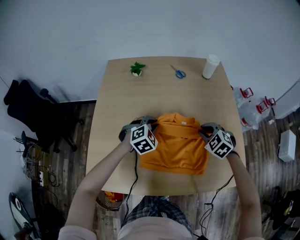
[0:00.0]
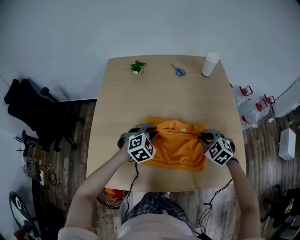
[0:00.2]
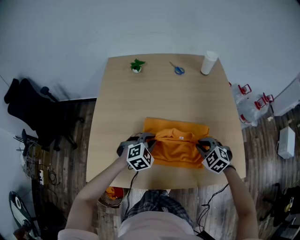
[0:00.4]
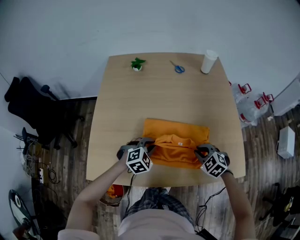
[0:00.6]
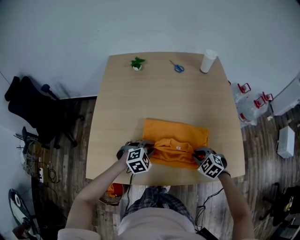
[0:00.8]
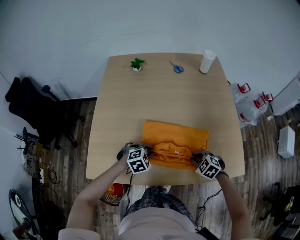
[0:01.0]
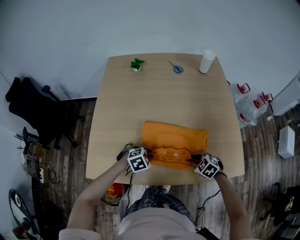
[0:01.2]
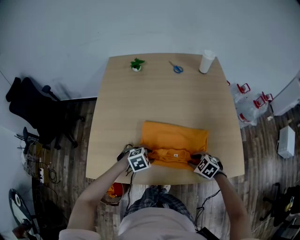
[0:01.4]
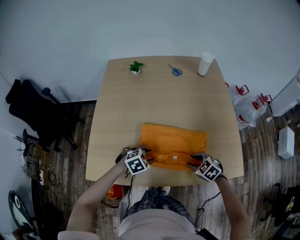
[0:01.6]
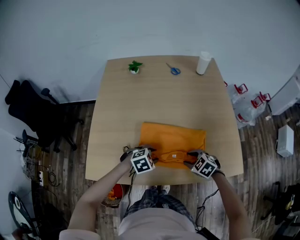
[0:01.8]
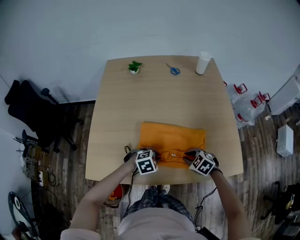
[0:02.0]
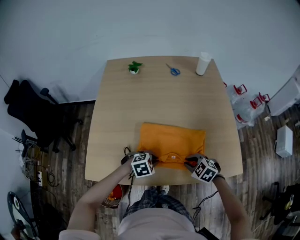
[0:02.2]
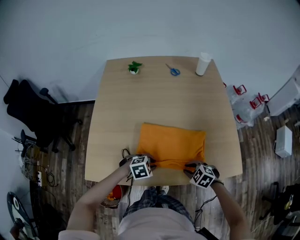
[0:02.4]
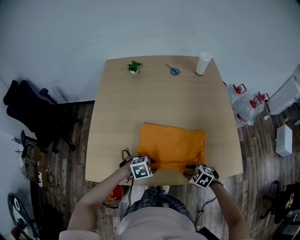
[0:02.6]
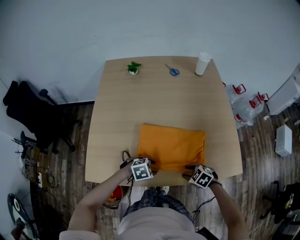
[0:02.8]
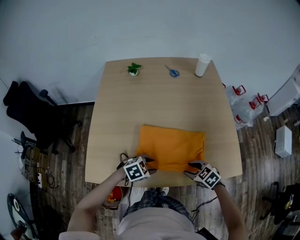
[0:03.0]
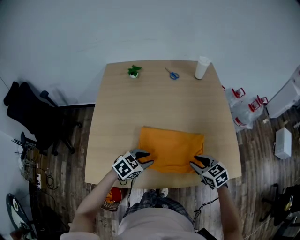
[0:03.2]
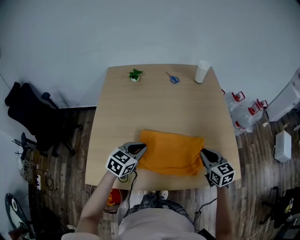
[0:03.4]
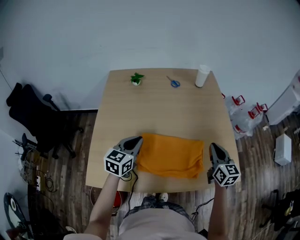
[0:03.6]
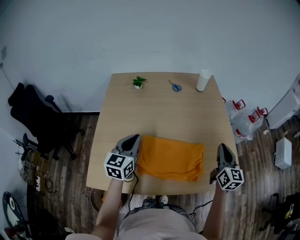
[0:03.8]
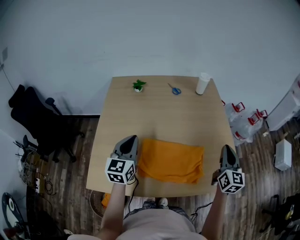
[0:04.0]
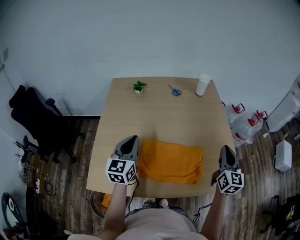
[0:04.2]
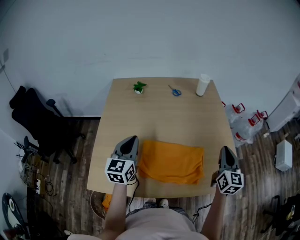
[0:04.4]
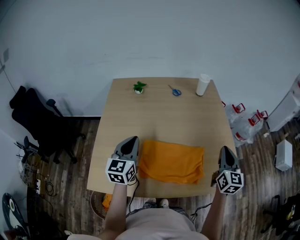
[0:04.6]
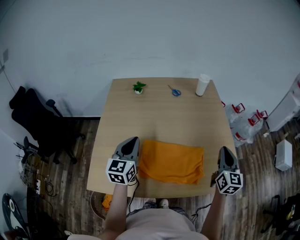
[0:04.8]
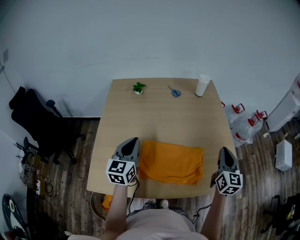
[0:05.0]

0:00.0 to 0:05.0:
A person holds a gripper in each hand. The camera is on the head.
0:00.0 to 0:01.6: The right gripper ends up some 20 cm from where it was, and turns by about 20 degrees, while the left gripper ends up roughly 20 cm from where it was, and swivels about 30 degrees.
0:01.6 to 0:03.4: The two grippers go some 15 cm upward. The right gripper points its fingers some 30 degrees further upward. The left gripper turns by about 40 degrees.
0:03.4 to 0:05.0: The right gripper heads upward and to the right, covering about 15 cm, and changes its angle by about 30 degrees, while the left gripper goes approximately 10 cm upward and to the left, and changes its angle by roughly 40 degrees.

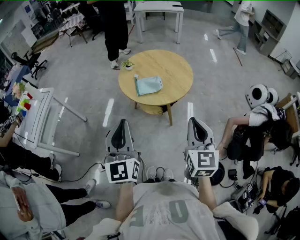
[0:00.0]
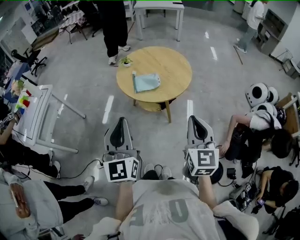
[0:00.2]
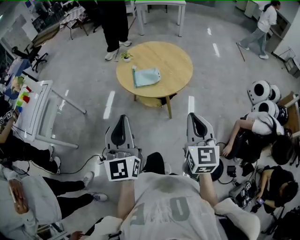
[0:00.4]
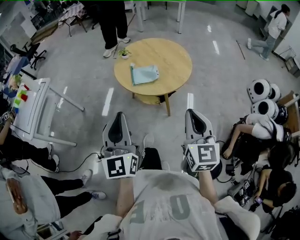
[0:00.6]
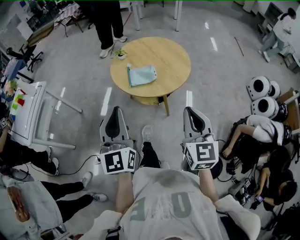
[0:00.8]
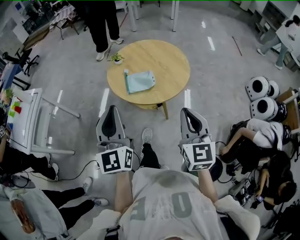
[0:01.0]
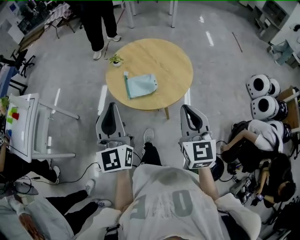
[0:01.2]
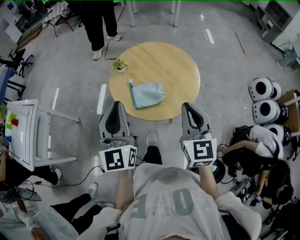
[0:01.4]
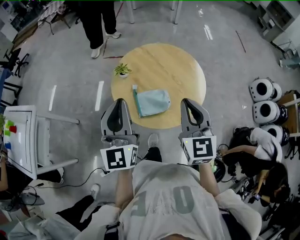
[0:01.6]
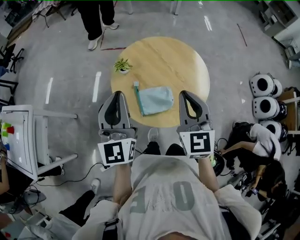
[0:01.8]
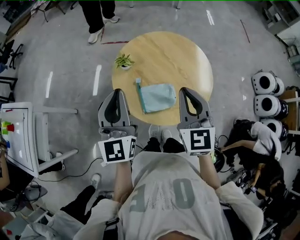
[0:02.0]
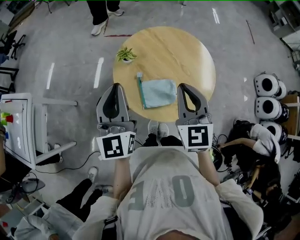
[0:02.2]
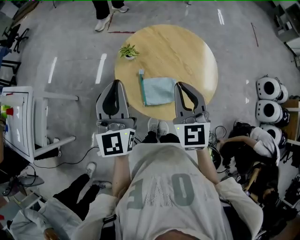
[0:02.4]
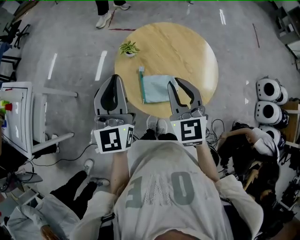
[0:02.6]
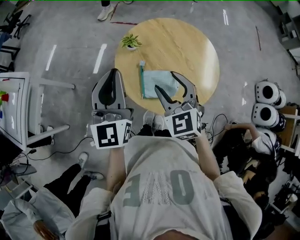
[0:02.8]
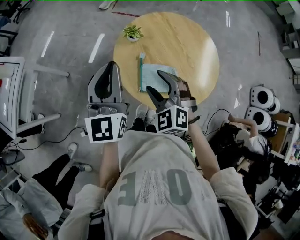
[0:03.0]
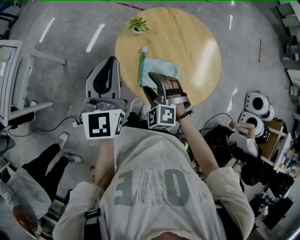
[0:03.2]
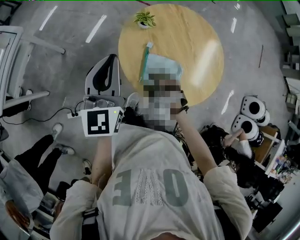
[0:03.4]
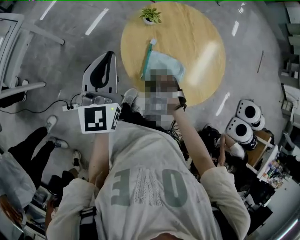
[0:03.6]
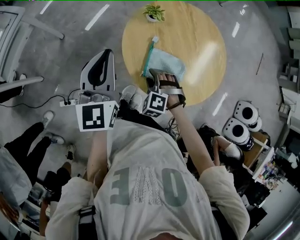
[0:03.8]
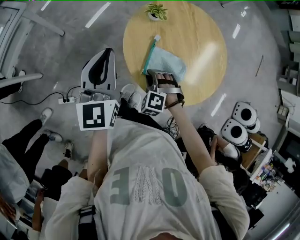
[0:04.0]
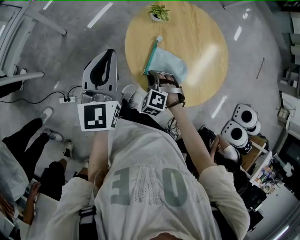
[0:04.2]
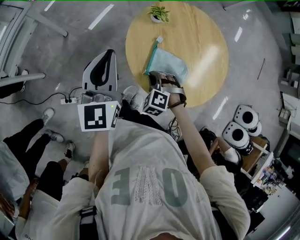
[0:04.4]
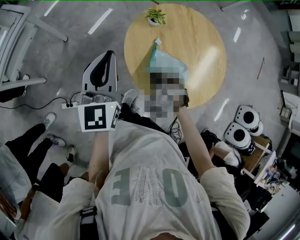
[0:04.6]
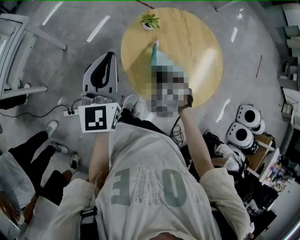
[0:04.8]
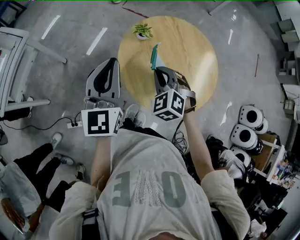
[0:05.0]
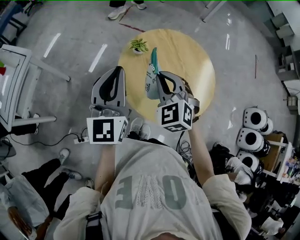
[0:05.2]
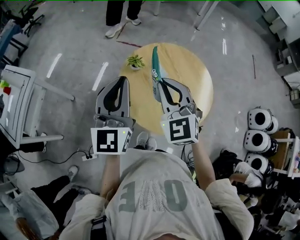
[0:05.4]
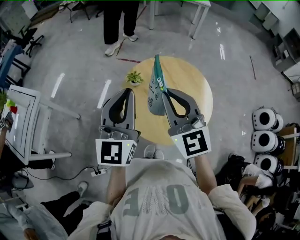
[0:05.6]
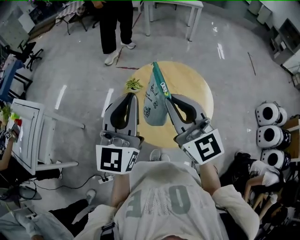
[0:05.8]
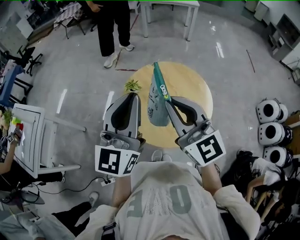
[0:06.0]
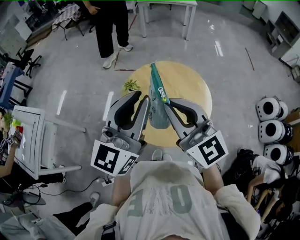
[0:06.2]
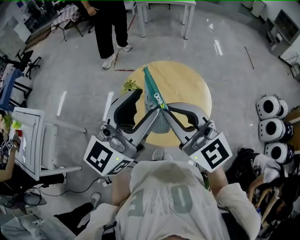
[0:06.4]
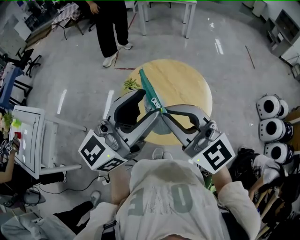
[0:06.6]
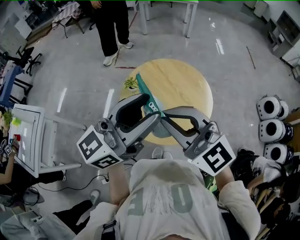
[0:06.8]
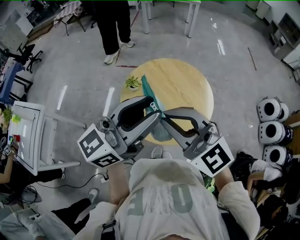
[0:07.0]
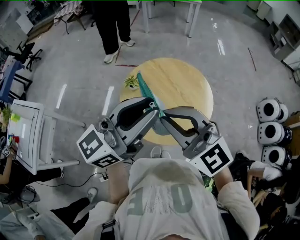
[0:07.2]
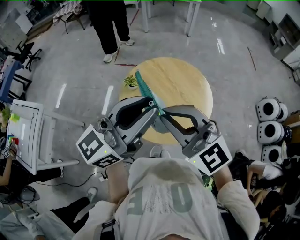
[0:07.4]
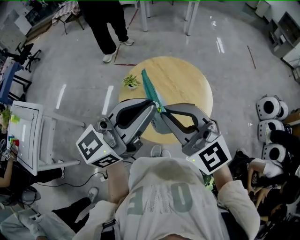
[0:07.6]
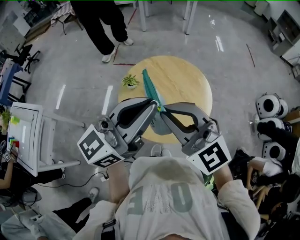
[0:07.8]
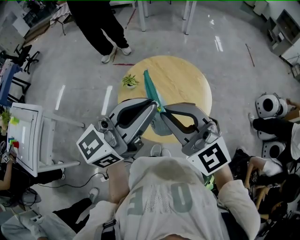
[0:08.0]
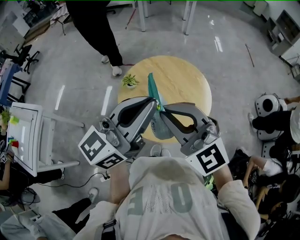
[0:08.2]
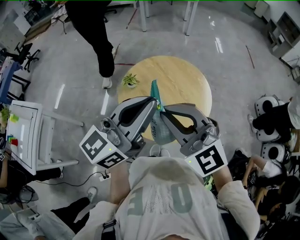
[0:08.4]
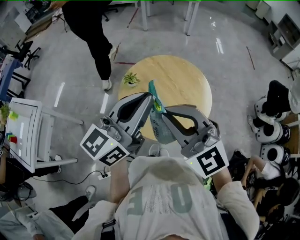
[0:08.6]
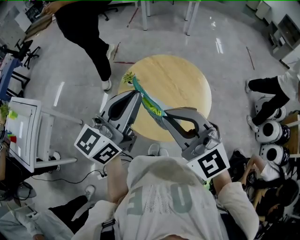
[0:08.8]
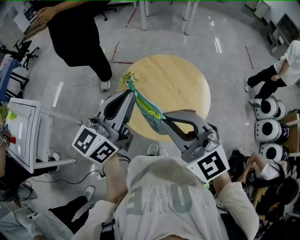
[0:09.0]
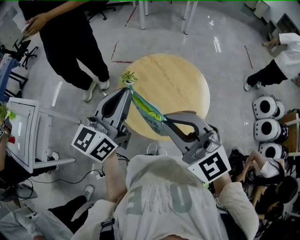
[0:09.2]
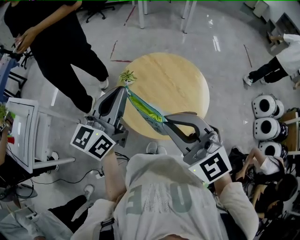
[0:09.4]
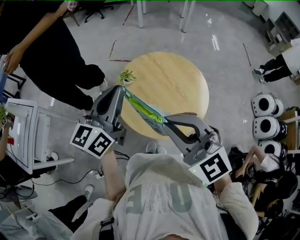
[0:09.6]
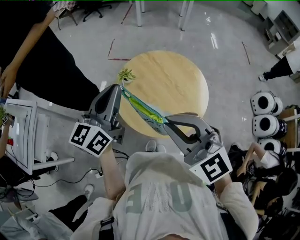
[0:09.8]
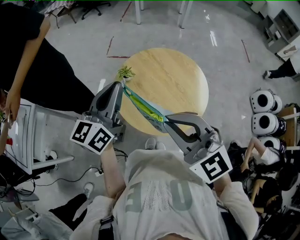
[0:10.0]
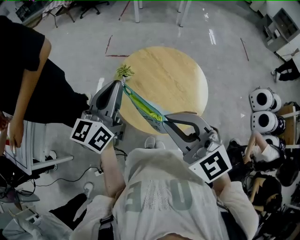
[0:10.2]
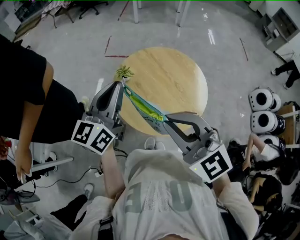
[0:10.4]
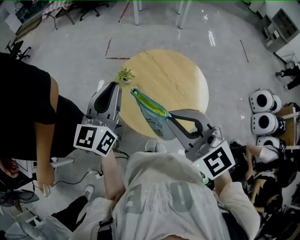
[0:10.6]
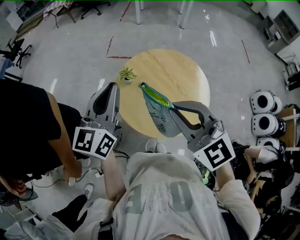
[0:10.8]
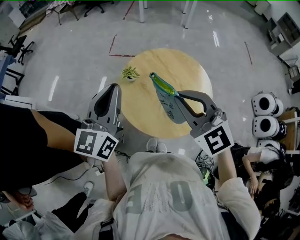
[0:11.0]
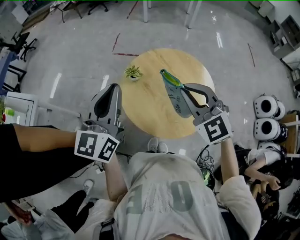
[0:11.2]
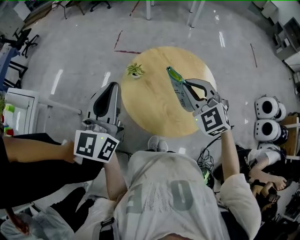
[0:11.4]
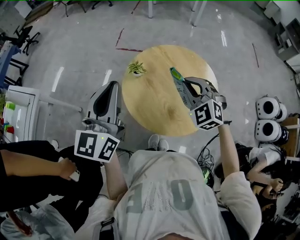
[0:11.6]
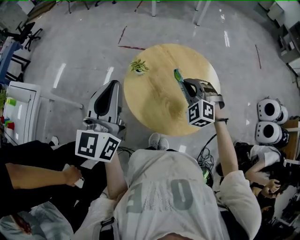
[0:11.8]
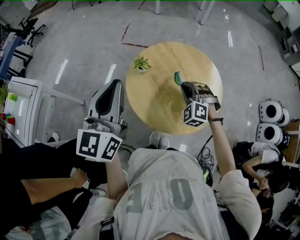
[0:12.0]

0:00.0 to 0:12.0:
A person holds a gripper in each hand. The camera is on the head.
0:00.0 to 0:01.6: The grippers both shift forward by some 30 cm.
0:01.6 to 0:03.0: The left gripper is displaced forward and to the left by some 10 cm, while the right gripper is displaced to the left, downward and forward by about 20 cm, rotates about 50 degrees, and opens up.
0:03.0 to 0:04.4: The right gripper shifts roughly 20 cm downward, swivels about 30 degrees, and closes its fingers. The left gripper is displaced to the left and downward by approximately 10 cm.
0:04.4 to 0:06.0: The right gripper shifts approximately 40 cm upward, and points its fingers some 70 degrees further upward. Meanwhile the left gripper travels upward and to the right by roughly 25 cm, and swivels roughly 40 degrees.
0:06.0 to 0:07.6: The left gripper shifts by some 5 cm, turns by roughly 40 degrees, and opens, then closes again.
0:07.6 to 0:09.0: The left gripper moves to the left, some 5 cm.
0:09.0 to 0:10.4: The left gripper ends up about 5 cm from where it was.
0:10.4 to 0:12.0: The right gripper heads downward and forward, covering approximately 30 cm, and angles its fingers downward, by approximately 30 degrees, while the left gripper goes some 5 cm to the left.

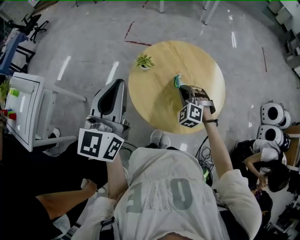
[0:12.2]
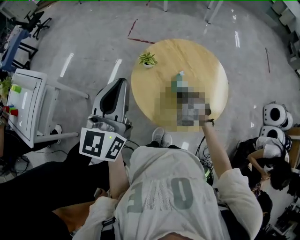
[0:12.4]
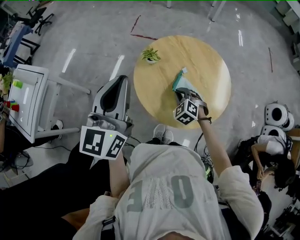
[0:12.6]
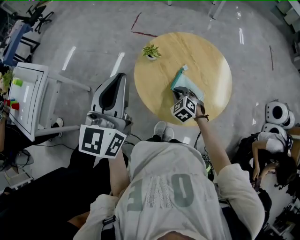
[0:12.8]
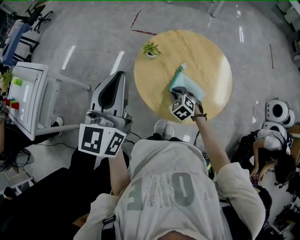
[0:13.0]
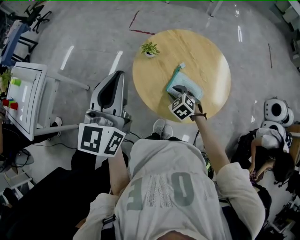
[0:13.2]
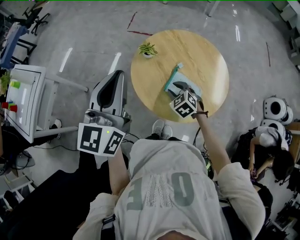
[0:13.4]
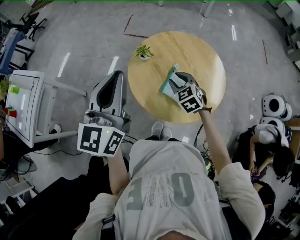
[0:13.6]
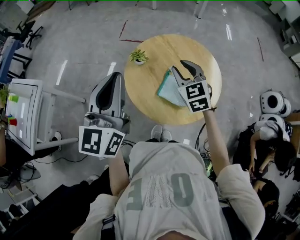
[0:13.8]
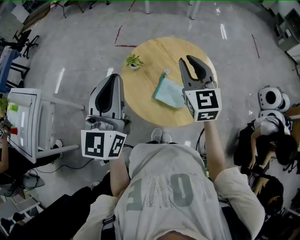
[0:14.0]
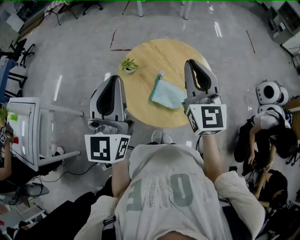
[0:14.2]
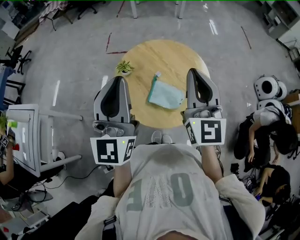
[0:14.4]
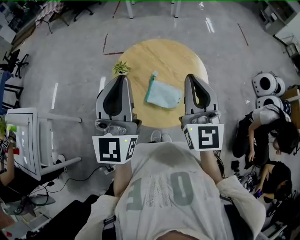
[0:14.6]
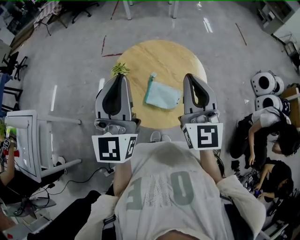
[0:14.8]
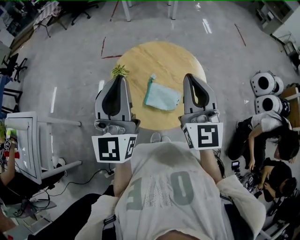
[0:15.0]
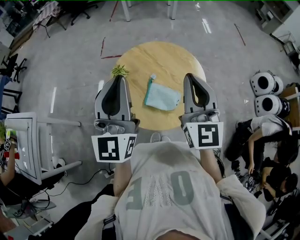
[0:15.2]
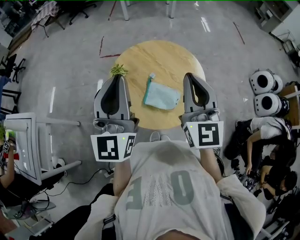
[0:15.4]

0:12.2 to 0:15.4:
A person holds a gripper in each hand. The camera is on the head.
0:12.2 to 0:13.8: The right gripper heads upward, covering some 15 cm, rotates around the line of its fingers by approximately 40 degrees, clockwise from behind, and opens up.
0:13.8 to 0:15.4: The right gripper heads upward, to the right and backward, covering some 20 cm, rotates about 40 degrees, and closes, while the left gripper is displaced to the right by some 10 cm.

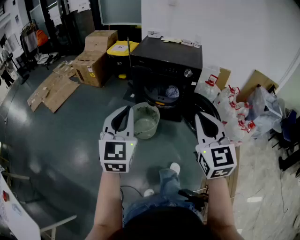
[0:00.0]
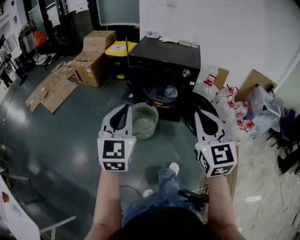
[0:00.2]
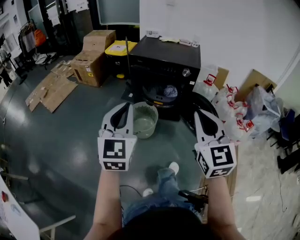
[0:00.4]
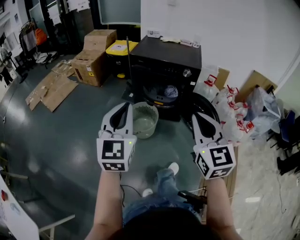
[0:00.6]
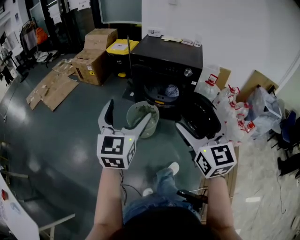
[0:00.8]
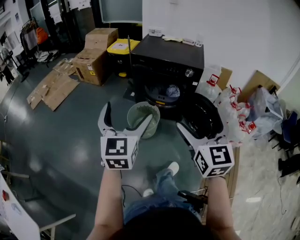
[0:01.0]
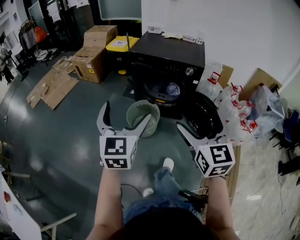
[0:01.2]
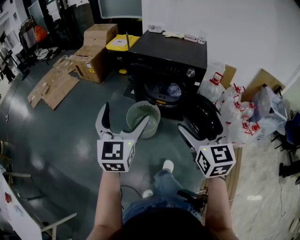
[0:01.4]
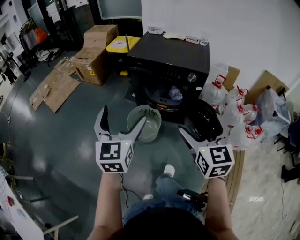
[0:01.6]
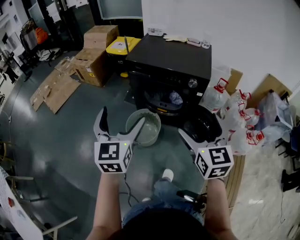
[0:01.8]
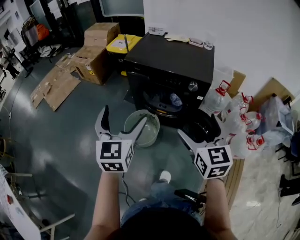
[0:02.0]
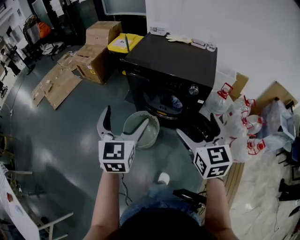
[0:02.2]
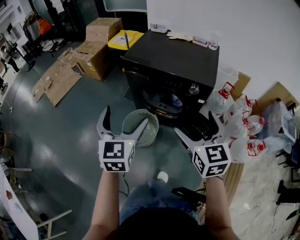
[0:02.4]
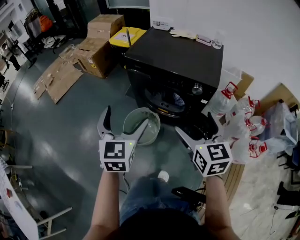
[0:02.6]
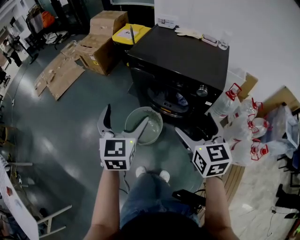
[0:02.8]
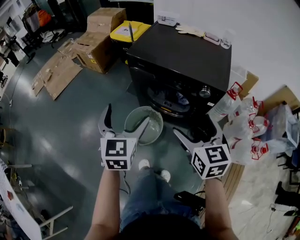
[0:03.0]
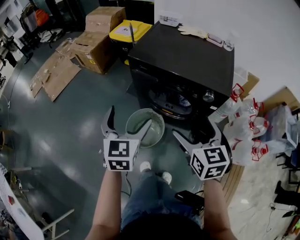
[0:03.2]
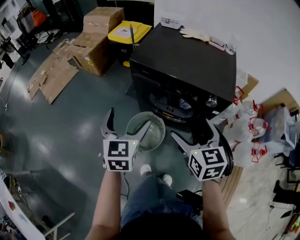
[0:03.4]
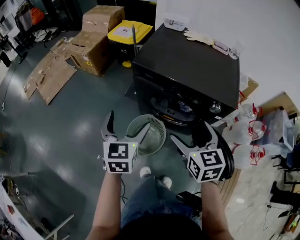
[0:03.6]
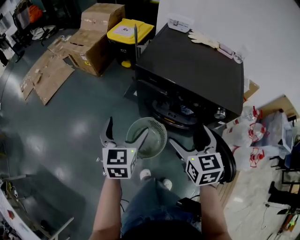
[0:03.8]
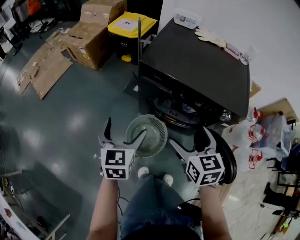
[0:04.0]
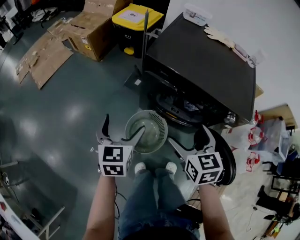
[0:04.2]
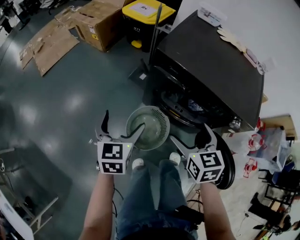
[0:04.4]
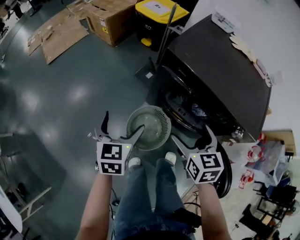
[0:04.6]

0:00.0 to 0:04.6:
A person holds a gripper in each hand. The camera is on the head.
0:00.0 to 0:01.6: The right gripper is displaced forward and downward by about 15 cm, and opens up, while the left gripper is displaced forward by some 15 cm, and opens up.
0:01.6 to 0:03.0: The right gripper shifts about 20 cm forward. The left gripper heads forward and downward, covering roughly 20 cm.
0:03.0 to 0:04.6: The right gripper goes some 25 cm forward, downward and to the left. The left gripper is displaced downward, to the left and forward by about 25 cm, and rotates about 20 degrees.
